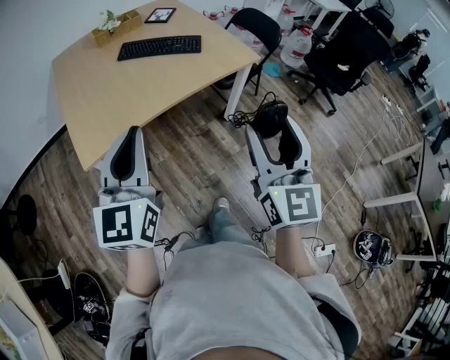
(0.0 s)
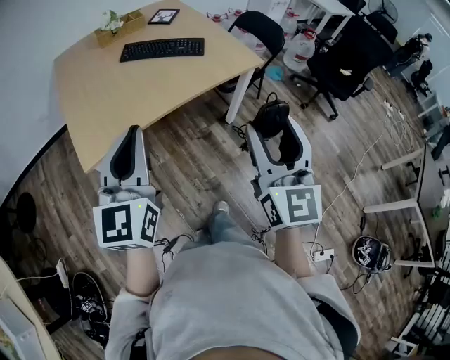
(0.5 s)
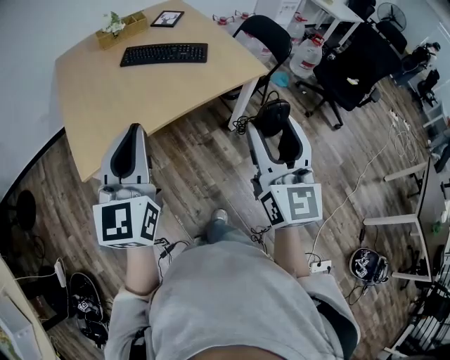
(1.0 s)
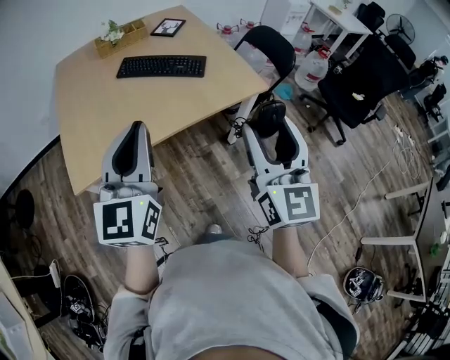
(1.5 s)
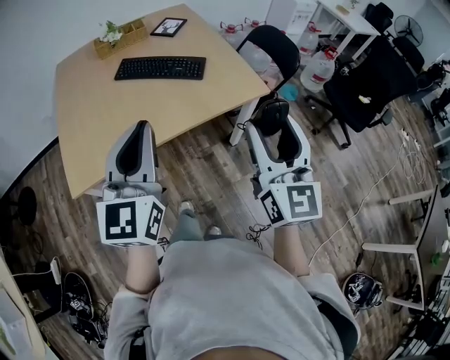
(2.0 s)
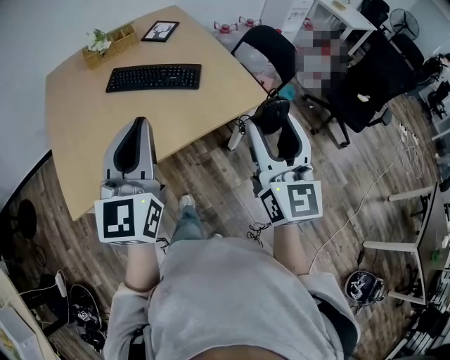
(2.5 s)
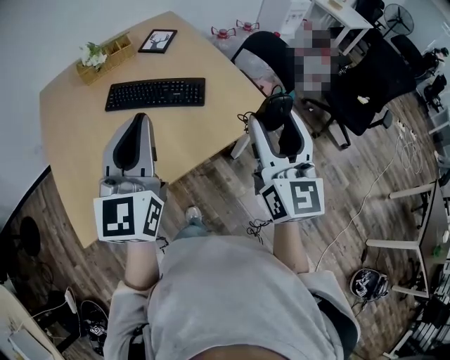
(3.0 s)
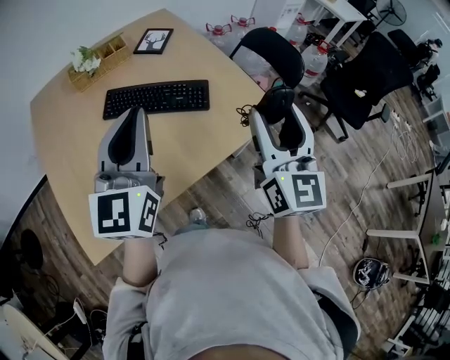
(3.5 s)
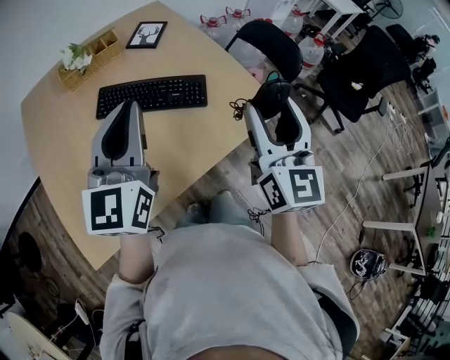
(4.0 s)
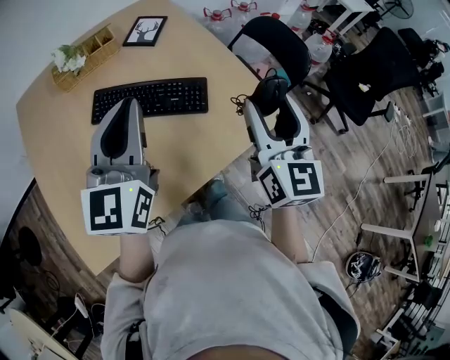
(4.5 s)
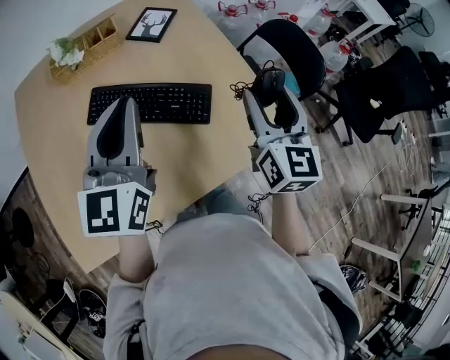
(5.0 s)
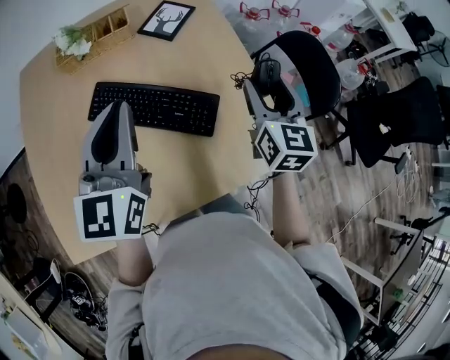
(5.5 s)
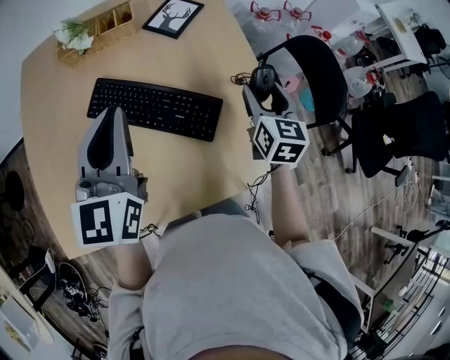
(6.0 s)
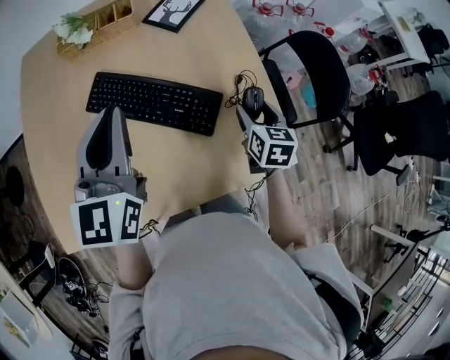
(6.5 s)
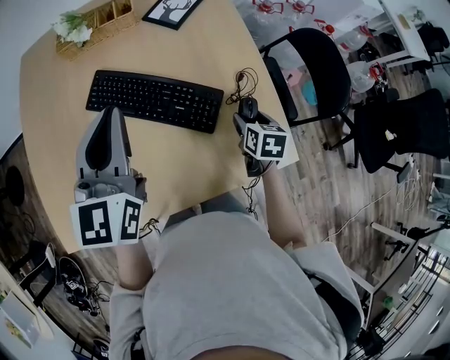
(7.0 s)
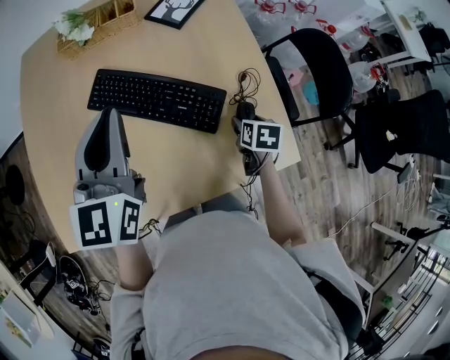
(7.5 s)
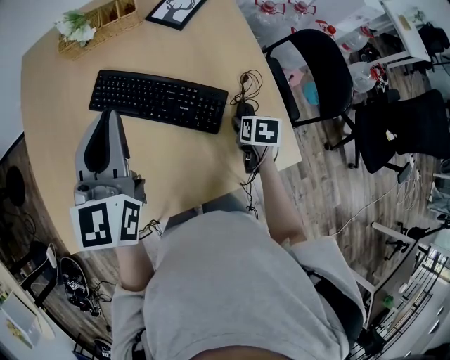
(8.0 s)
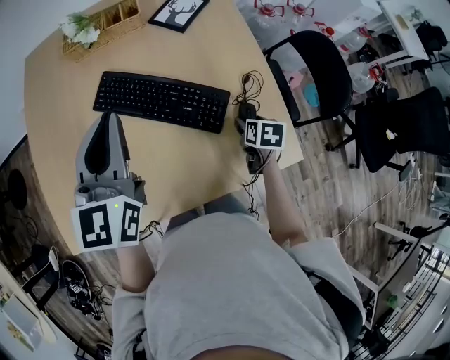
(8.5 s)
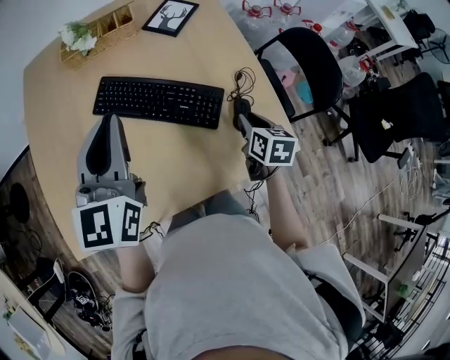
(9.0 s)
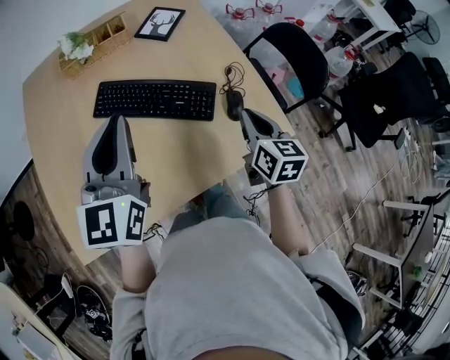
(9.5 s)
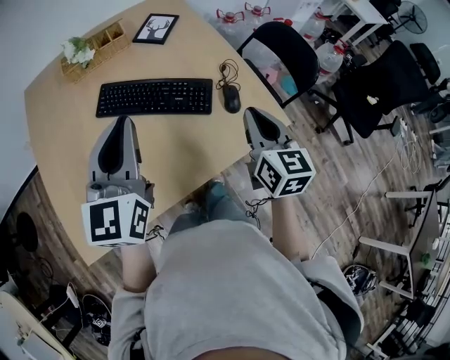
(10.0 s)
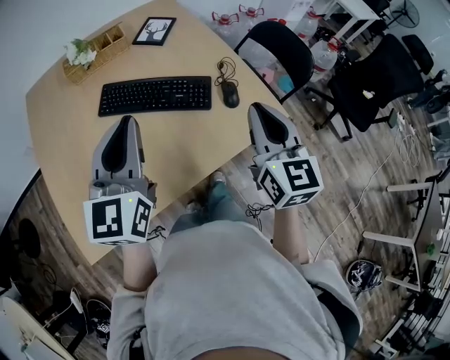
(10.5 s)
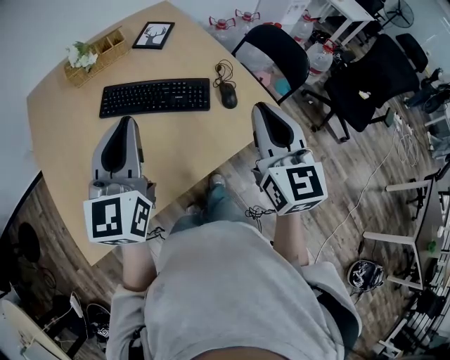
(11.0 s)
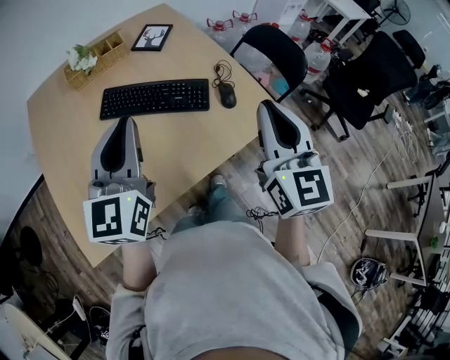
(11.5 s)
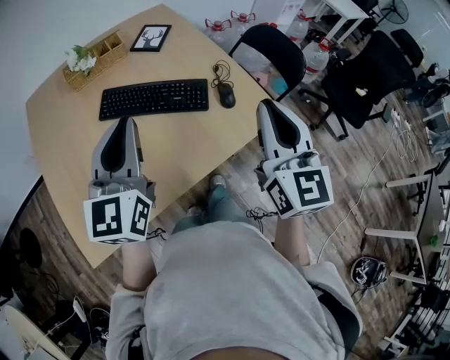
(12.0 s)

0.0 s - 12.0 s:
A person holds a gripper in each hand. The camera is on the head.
0.0 s - 2.0 s: Both grippers travel together forward and to the right, roughly 20 cm.
2.0 s - 4.0 s: The grippers both shift forward by approximately 25 cm.
4.0 s - 6.0 s: The right gripper travels forward and downward by roughly 40 cm, and rotates roughly 30 degrees. The left gripper shifts some 15 cm forward, and rotates roughly 20 degrees.
6.0 s - 8.0 s: The right gripper goes some 20 cm downward, and tilts its fingers some 40 degrees downward.
8.0 s - 10.0 s: The right gripper is displaced upward and backward by approximately 30 cm, tilts its fingers about 50 degrees upward, and closes its fingers, while the left gripper is displaced backward by roughly 10 cm.
10.0 s - 12.0 s: The left gripper shifts about 5 cm backward; the right gripper goes roughly 15 cm upward and backward, and swivels approximately 20 degrees.

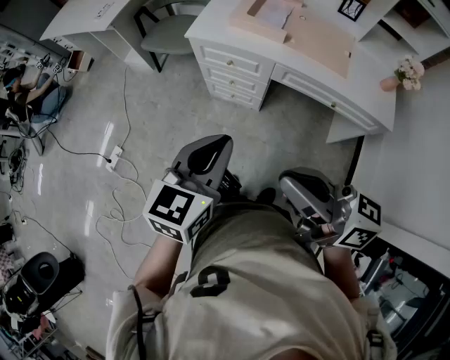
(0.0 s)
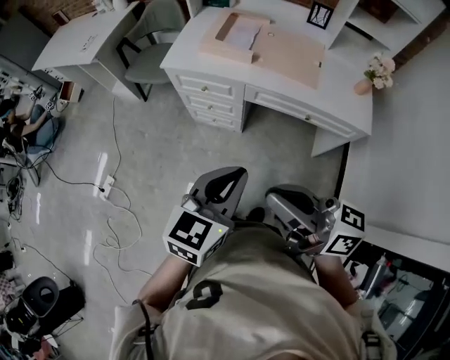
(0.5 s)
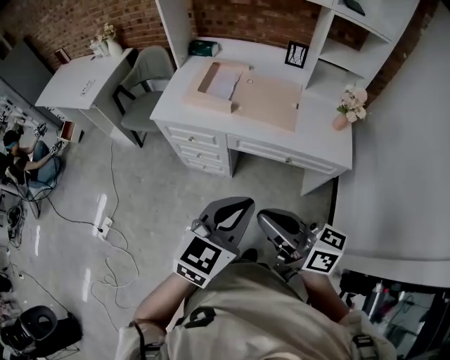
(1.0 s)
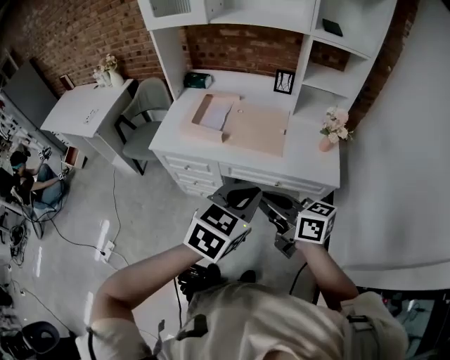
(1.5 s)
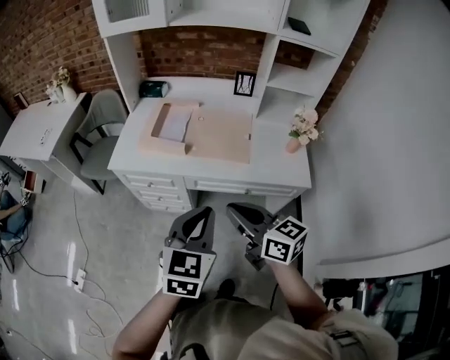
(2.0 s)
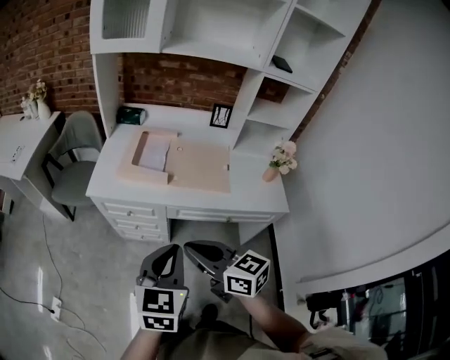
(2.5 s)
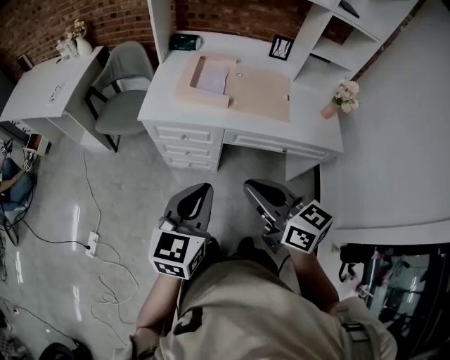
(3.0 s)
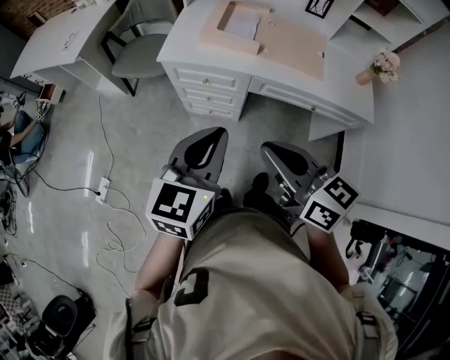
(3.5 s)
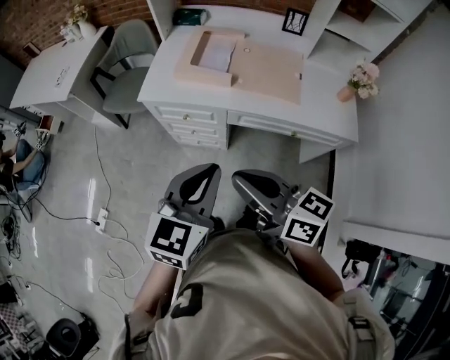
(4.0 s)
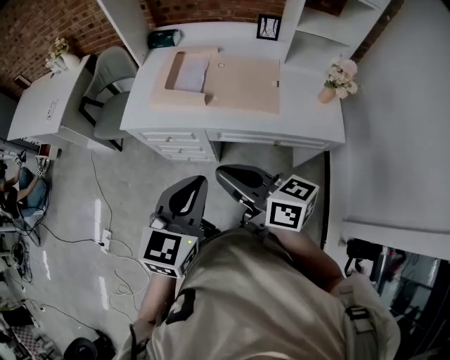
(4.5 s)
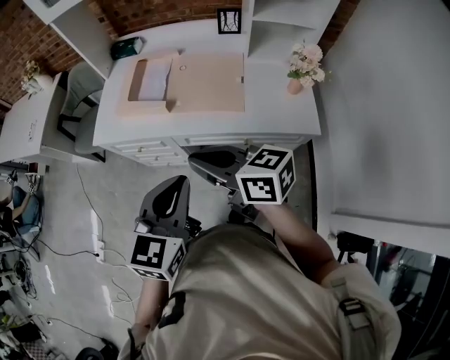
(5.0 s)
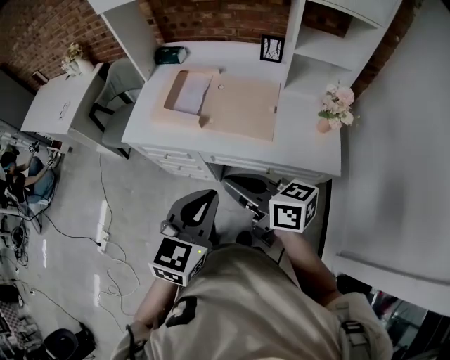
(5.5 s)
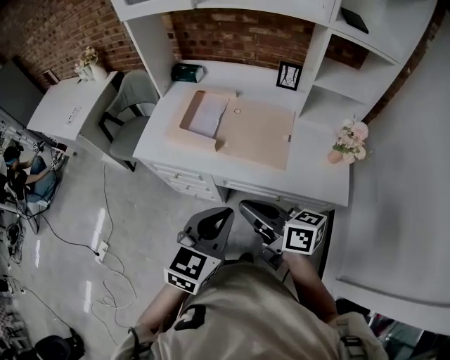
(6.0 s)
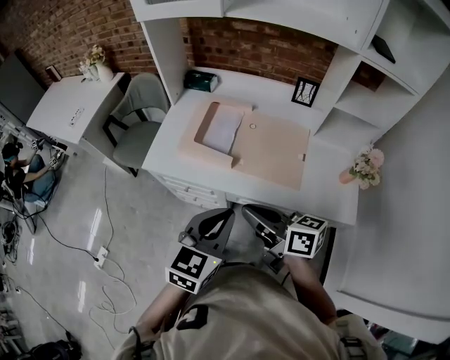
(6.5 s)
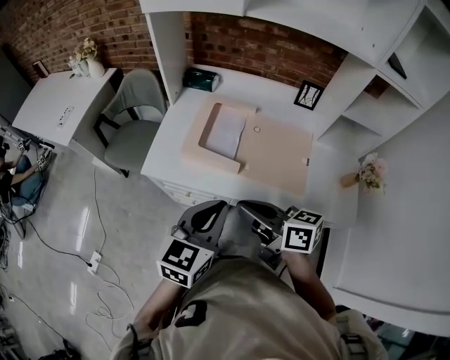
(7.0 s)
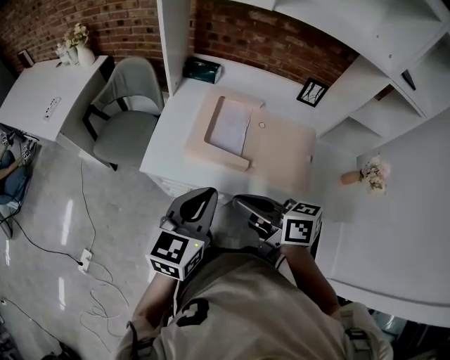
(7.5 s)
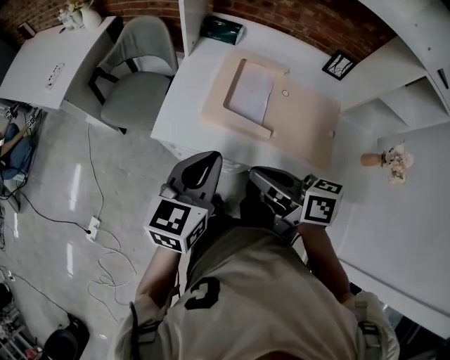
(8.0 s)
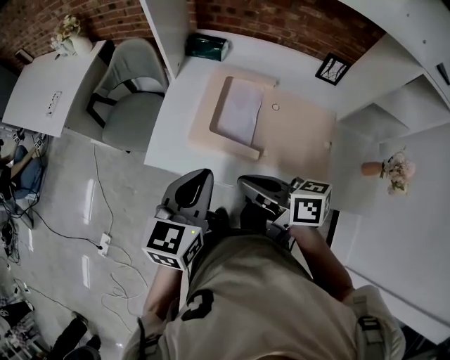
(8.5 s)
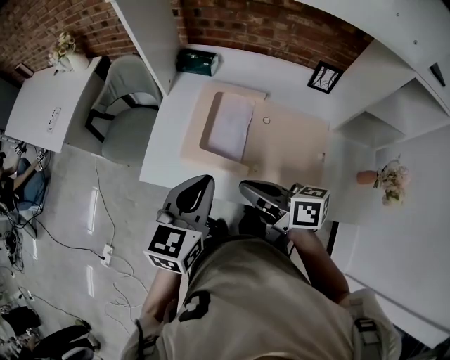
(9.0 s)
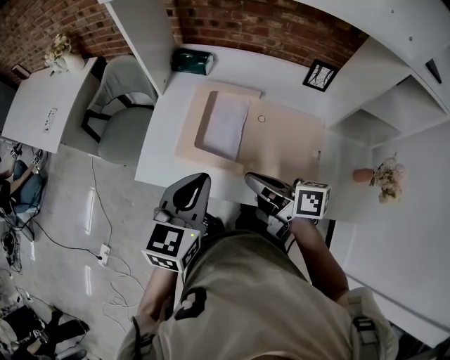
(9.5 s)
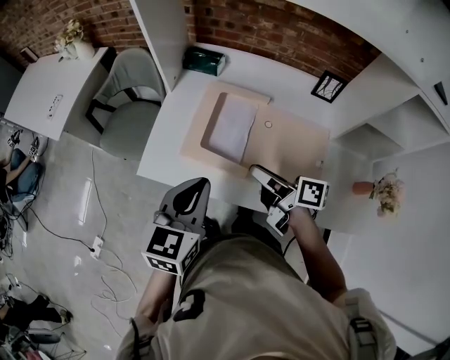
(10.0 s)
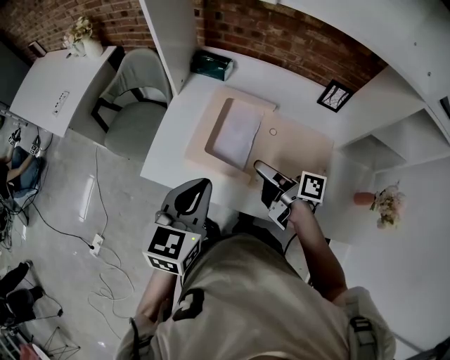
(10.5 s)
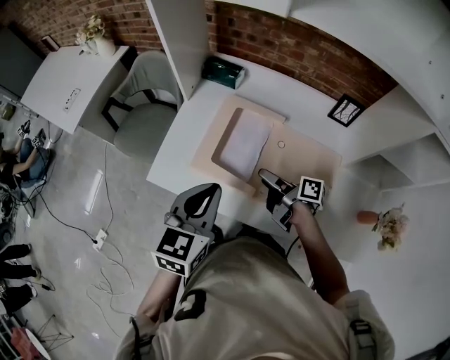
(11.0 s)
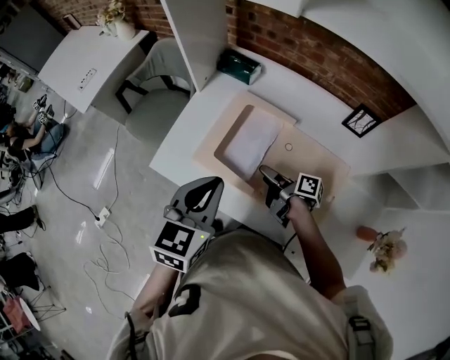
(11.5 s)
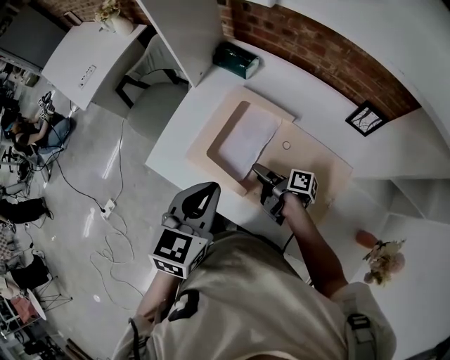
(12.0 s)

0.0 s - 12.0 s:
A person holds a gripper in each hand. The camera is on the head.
0.0 s - 2.0 s: The right gripper heads to the right and forward, covering approximately 20 cm, and swivels some 30 degrees. Meanwhile the left gripper goes some 20 cm to the right.
2.0 s - 4.0 s: Both grippers move to the left, approximately 15 cm.
4.0 s - 6.0 s: The left gripper travels to the right by roughly 15 cm; the right gripper heads to the right and forward, covering roughly 15 cm.
6.0 s - 8.0 s: Both grippers move forward and to the left, about 25 cm.
8.0 s - 10.0 s: The right gripper goes roughly 15 cm to the right, forward and downward, and opens. Meanwhile the left gripper shifts some 5 cm to the right.
10.0 s - 12.0 s: The right gripper heads downward and forward, covering roughly 15 cm, swivels some 30 degrees, and opens. Meanwhile the left gripper heads to the right, covering approximately 5 cm.

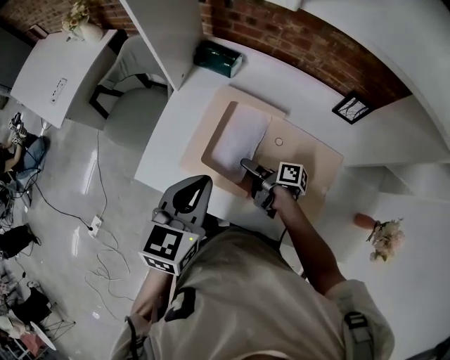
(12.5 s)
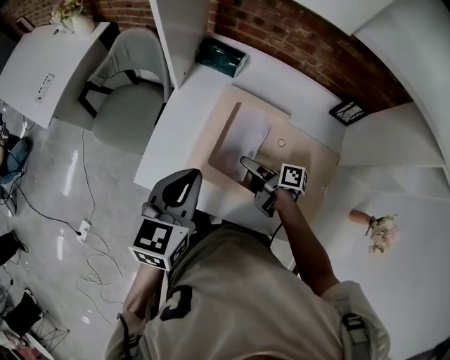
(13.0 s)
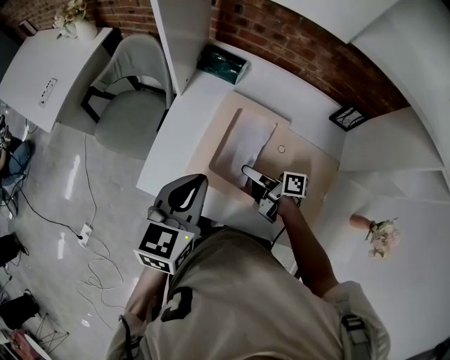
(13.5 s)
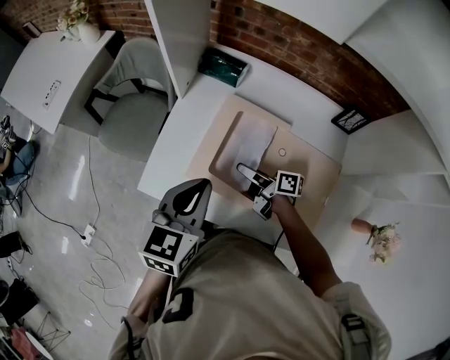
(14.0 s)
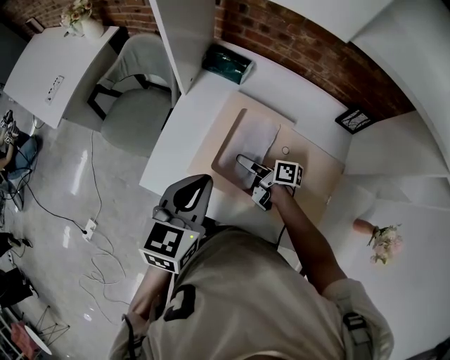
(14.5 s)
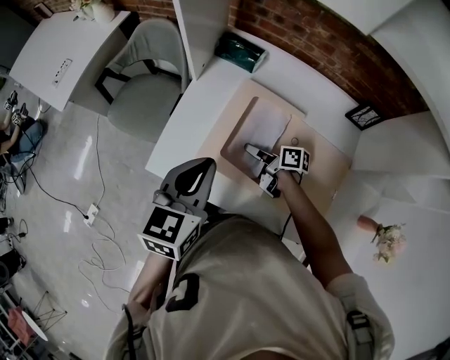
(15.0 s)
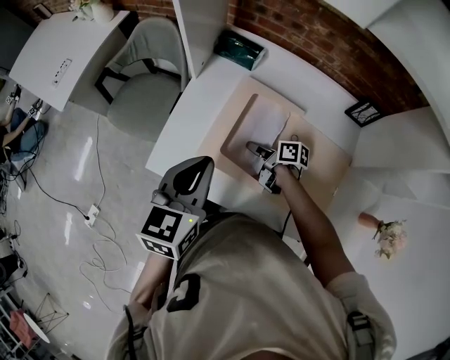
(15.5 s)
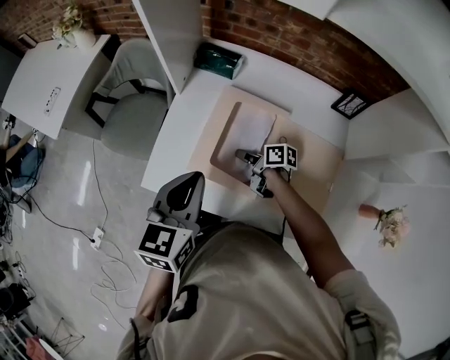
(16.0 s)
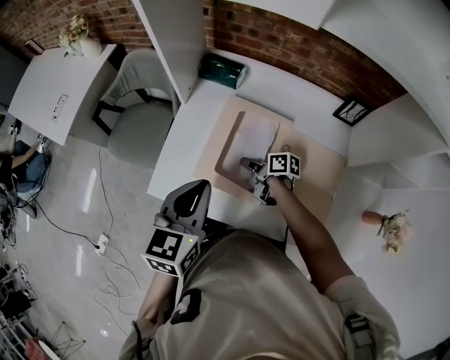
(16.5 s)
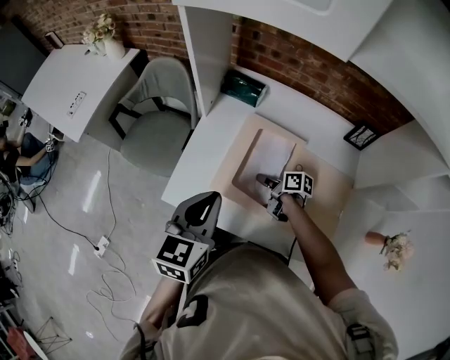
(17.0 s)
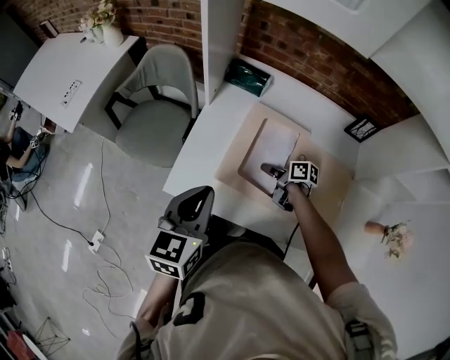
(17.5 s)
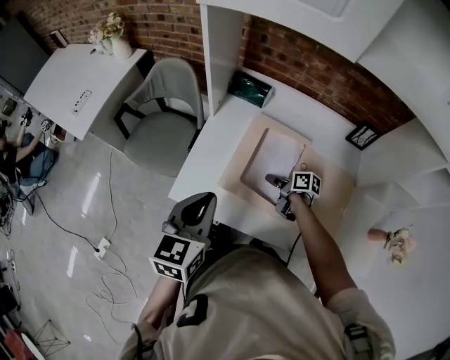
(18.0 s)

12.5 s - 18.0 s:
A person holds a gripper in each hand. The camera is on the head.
12.5 s - 14.5 s: The right gripper heads forward, covering roughly 5 cm. The left gripper shifts by about 5 cm.
14.5 s - 16.0 s: The right gripper closes its fingers.
16.0 s - 18.0 s: The left gripper travels to the left by approximately 5 cm.
